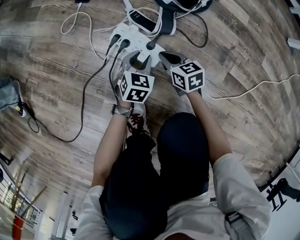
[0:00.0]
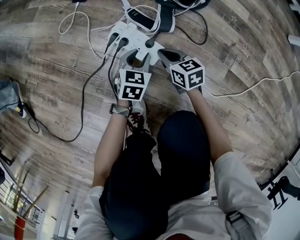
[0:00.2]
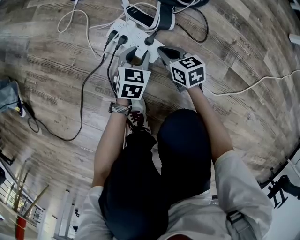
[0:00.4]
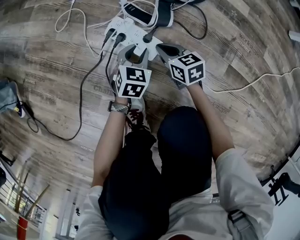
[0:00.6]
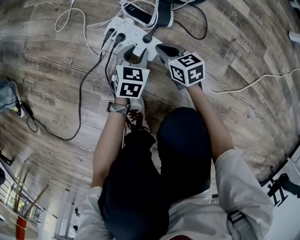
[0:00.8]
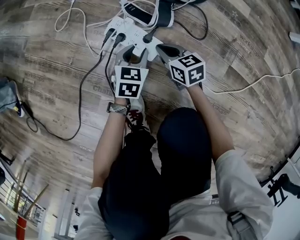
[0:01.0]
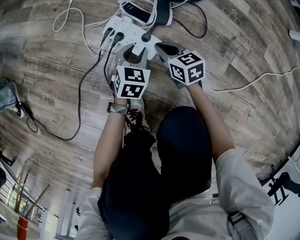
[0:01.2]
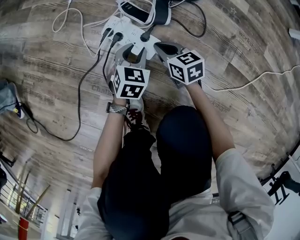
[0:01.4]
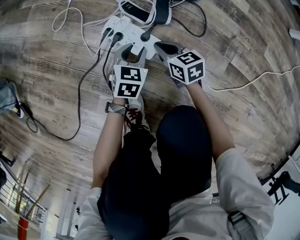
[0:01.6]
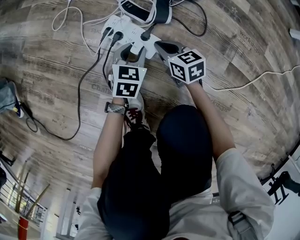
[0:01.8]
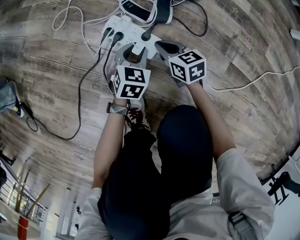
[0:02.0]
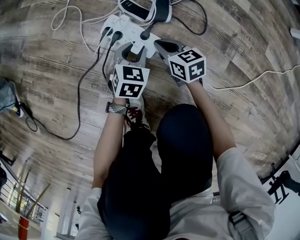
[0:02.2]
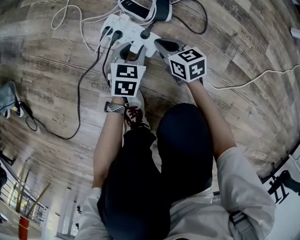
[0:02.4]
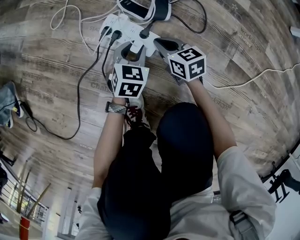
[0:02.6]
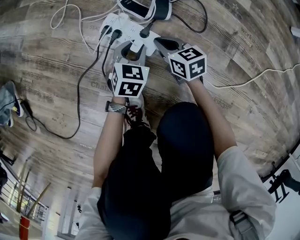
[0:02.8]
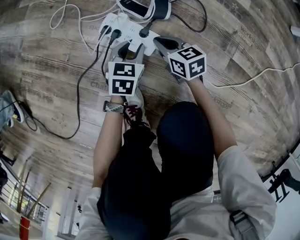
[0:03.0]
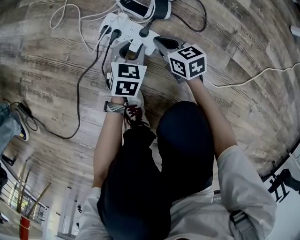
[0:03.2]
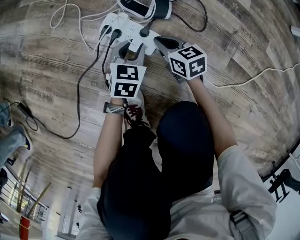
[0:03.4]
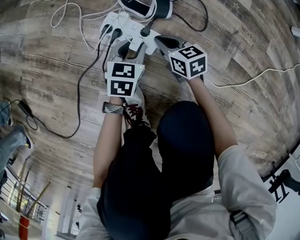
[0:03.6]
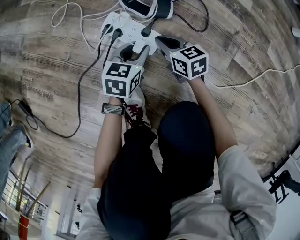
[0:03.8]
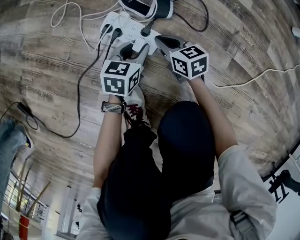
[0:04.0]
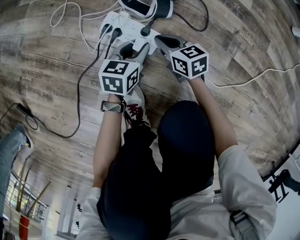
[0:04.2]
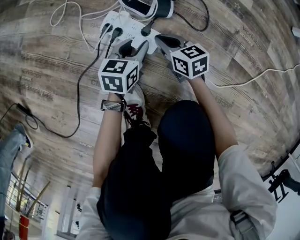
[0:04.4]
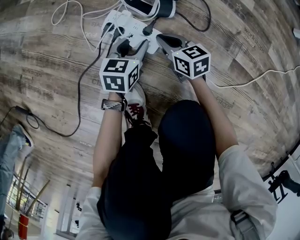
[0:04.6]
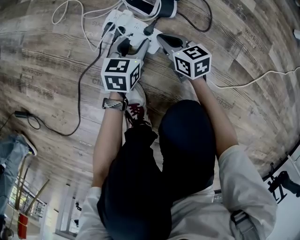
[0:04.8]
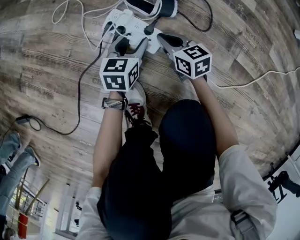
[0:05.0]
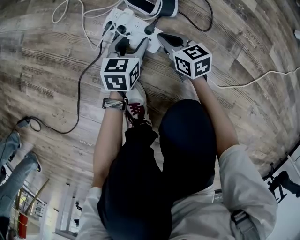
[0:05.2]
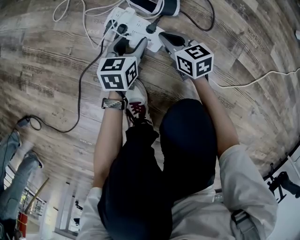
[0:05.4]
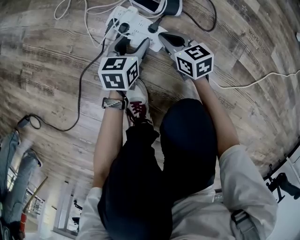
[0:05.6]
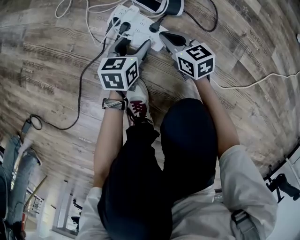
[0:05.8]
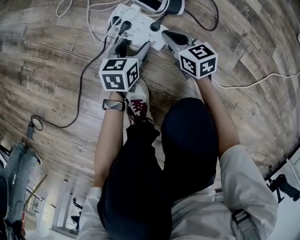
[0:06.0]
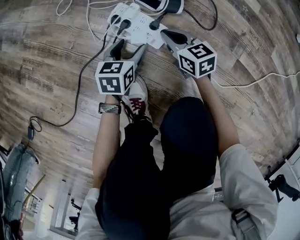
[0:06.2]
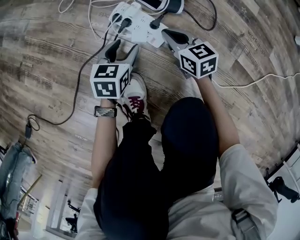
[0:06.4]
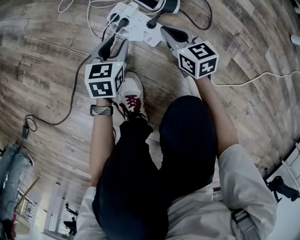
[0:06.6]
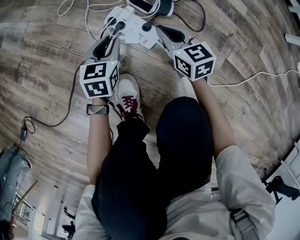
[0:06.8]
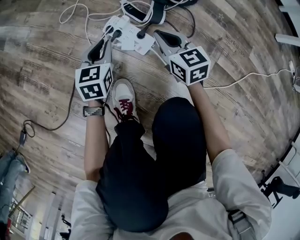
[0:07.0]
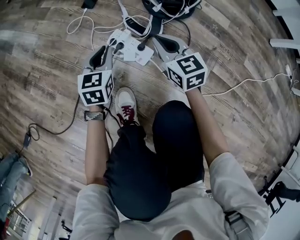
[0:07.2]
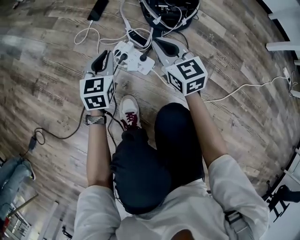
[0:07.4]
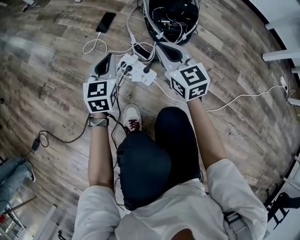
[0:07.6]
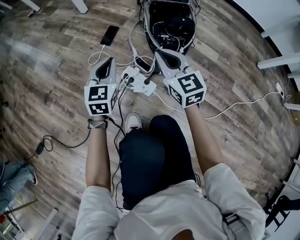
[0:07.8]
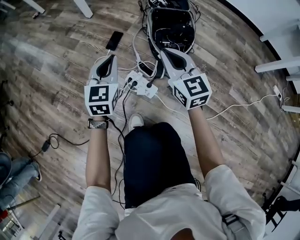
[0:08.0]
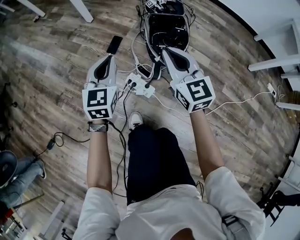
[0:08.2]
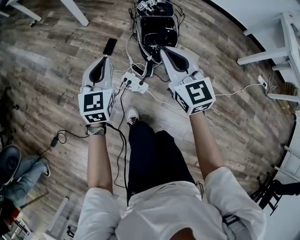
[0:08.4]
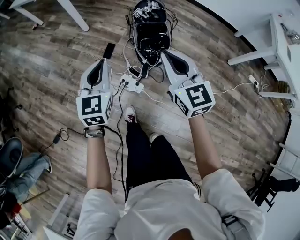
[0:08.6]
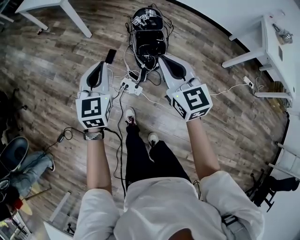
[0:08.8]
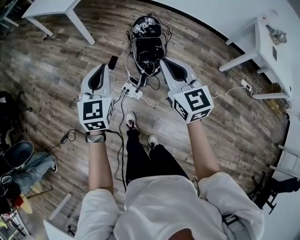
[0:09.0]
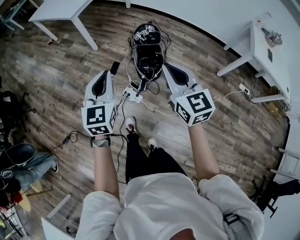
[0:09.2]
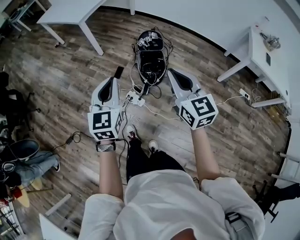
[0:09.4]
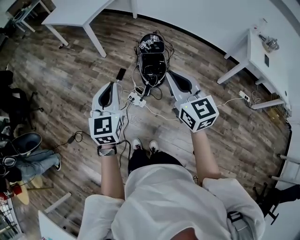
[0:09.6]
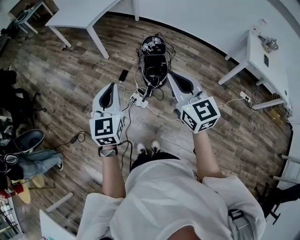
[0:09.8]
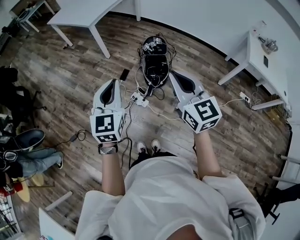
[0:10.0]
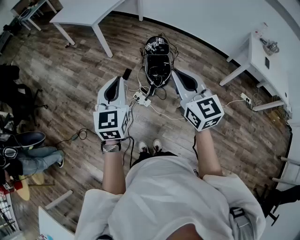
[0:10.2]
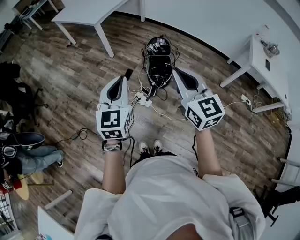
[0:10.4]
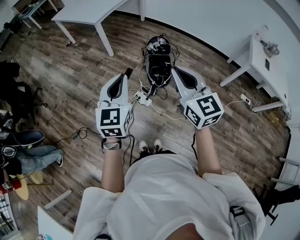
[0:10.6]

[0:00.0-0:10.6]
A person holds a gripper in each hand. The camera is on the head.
0:00.0 to 0:03.0: The grippers move only a little.
0:03.0 to 0:04.6: The grippers stay close to where they were, moving slightly.
0:04.6 to 0:06.0: The left gripper opens up.
0:06.0 to 0:07.6: Both grippers travel together upward, some 30 cm. The right gripper changes its angle by approximately 30 degrees. Meanwhile the left gripper swivels roughly 30 degrees, and closes its fingers.
0:07.6 to 0:09.0: The grippers both shift upward by some 70 cm.
0:09.0 to 0:10.6: The grippers both shift upward and backward by approximately 25 cm.

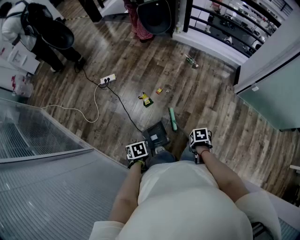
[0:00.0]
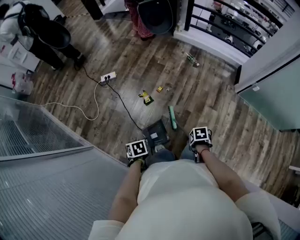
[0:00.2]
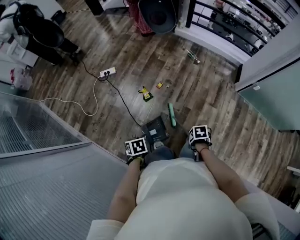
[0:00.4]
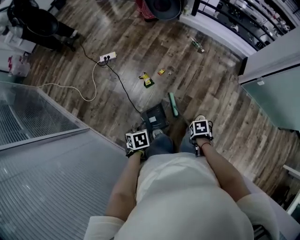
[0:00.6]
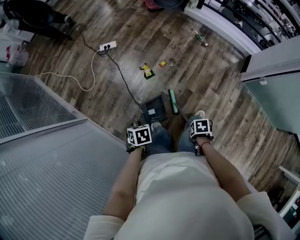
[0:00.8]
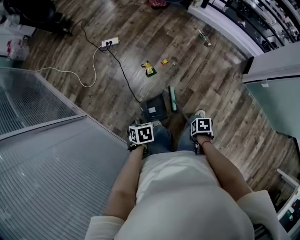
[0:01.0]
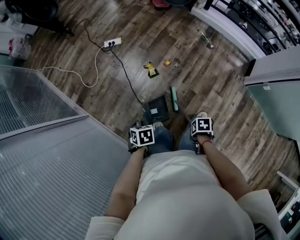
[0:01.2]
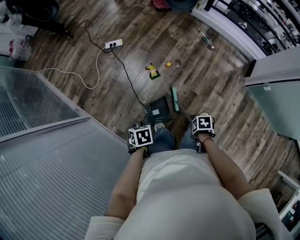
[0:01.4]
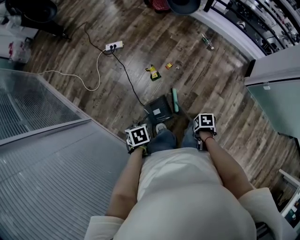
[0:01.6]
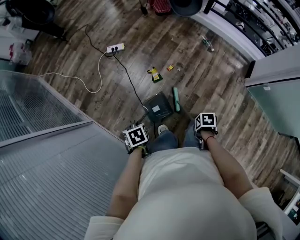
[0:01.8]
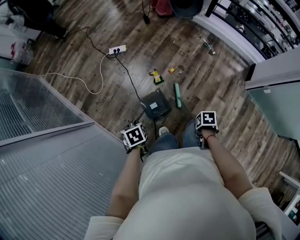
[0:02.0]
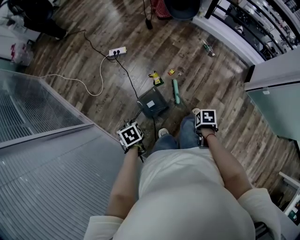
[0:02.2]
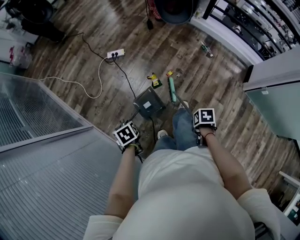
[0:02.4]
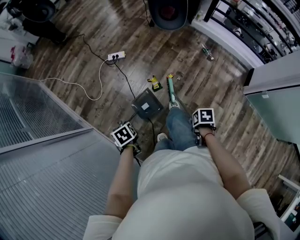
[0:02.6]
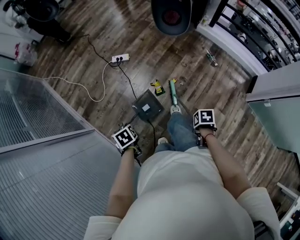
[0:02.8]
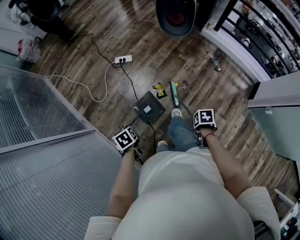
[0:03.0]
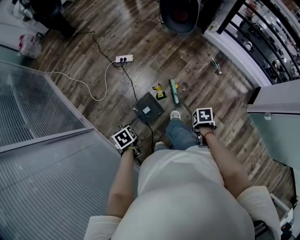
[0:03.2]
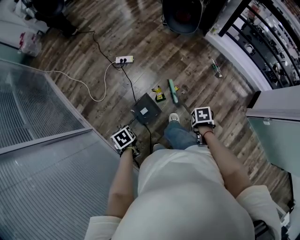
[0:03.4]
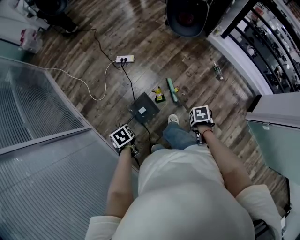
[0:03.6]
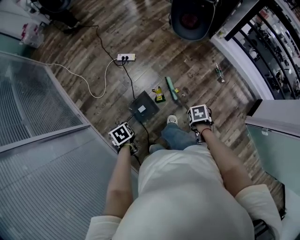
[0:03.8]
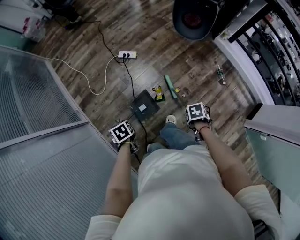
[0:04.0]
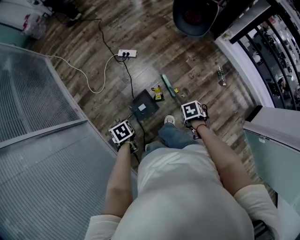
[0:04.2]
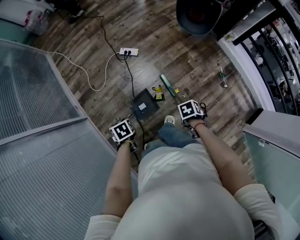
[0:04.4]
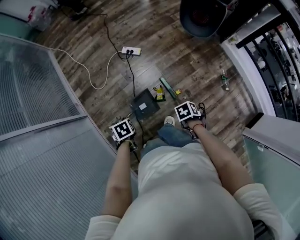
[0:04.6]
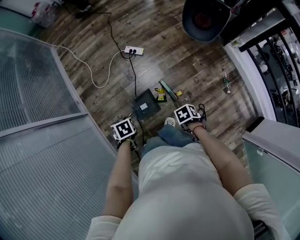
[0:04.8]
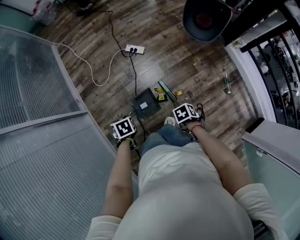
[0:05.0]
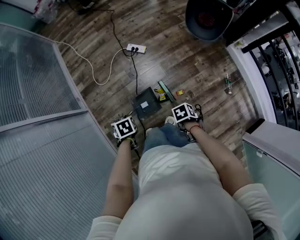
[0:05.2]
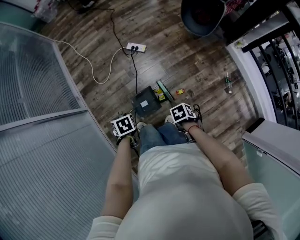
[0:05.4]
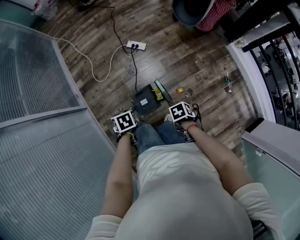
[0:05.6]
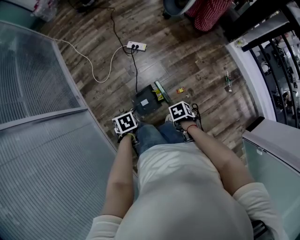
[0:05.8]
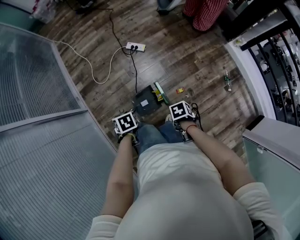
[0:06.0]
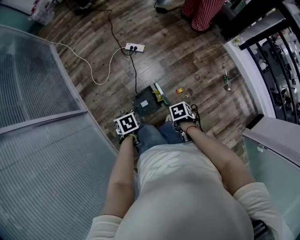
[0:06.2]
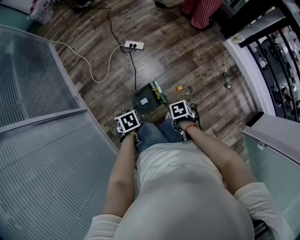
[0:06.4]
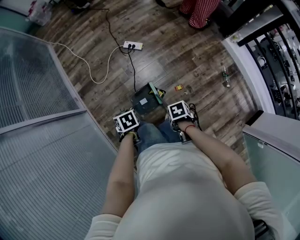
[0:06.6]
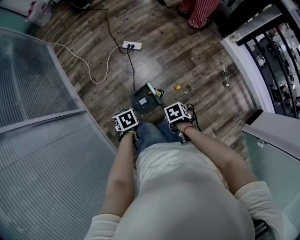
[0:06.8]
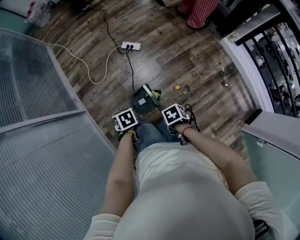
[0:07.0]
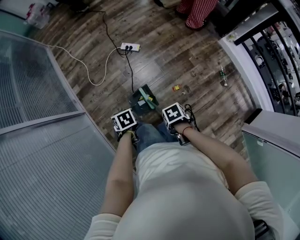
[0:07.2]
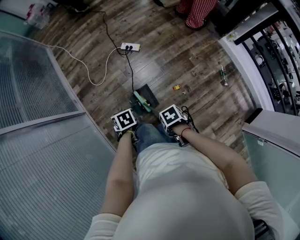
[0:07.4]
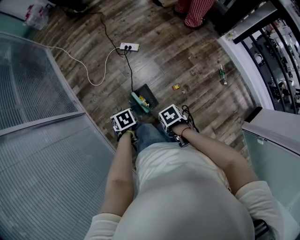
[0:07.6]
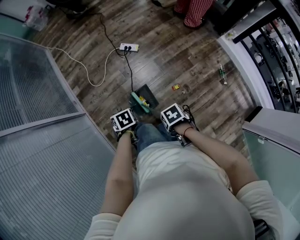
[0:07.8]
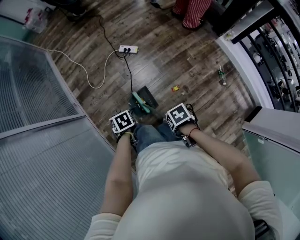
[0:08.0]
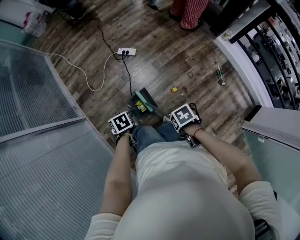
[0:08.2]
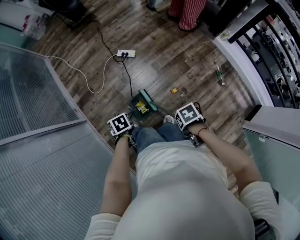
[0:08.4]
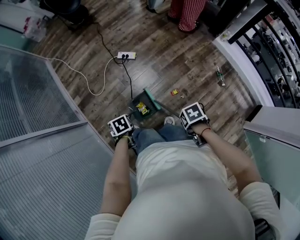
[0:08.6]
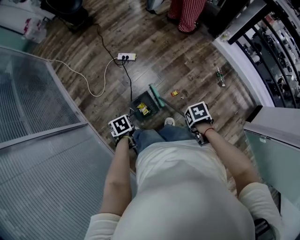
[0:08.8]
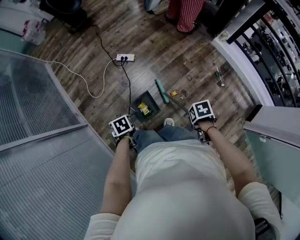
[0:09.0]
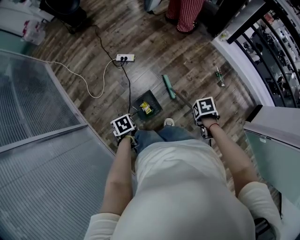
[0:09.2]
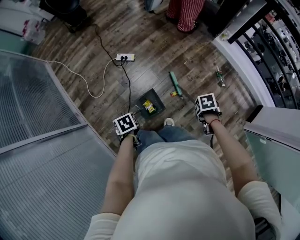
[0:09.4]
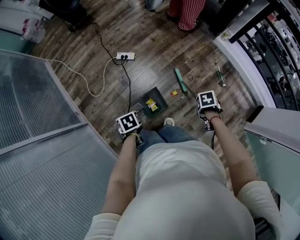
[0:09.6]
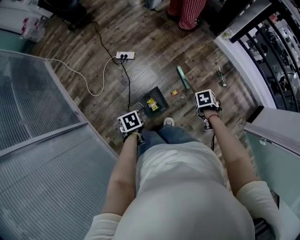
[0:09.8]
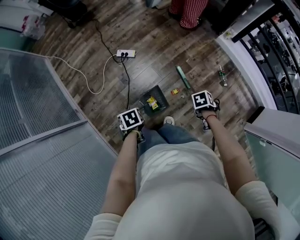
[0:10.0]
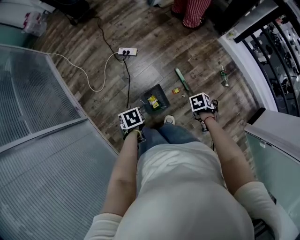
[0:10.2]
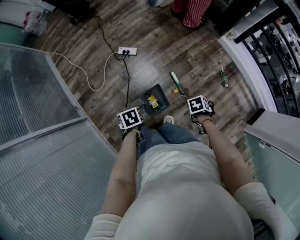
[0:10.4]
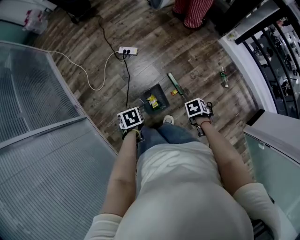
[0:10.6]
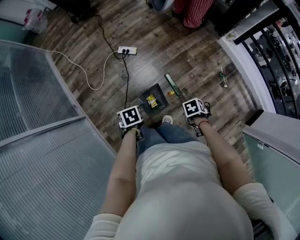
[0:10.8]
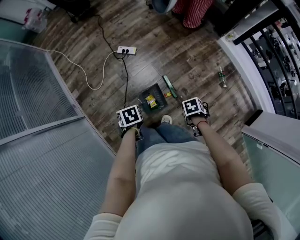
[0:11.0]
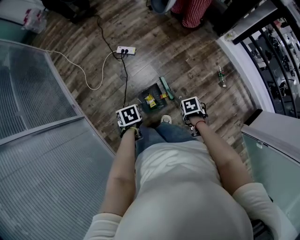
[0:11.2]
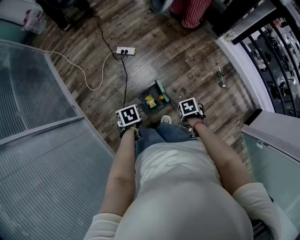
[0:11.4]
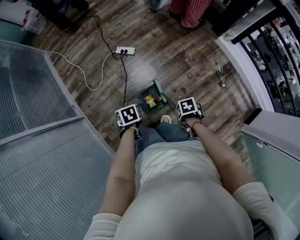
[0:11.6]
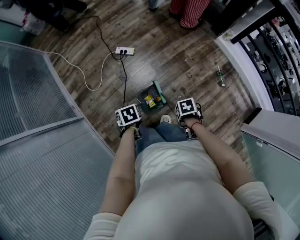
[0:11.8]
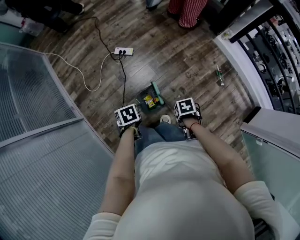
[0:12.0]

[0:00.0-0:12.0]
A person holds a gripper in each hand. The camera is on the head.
0:01.6 to 0:03.0: The left gripper shifts by roughly 15 cm, and changes its angle by approximately 20 degrees.
0:03.0 to 0:04.4: The left gripper changes place by approximately 10 cm.
0:09.0 to 0:10.4: The left gripper changes place by some 10 cm.

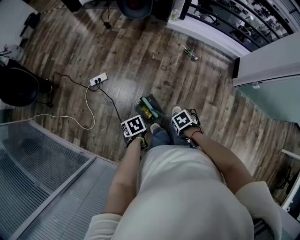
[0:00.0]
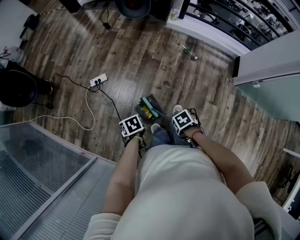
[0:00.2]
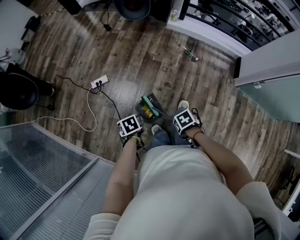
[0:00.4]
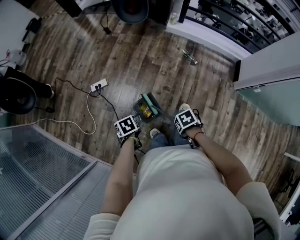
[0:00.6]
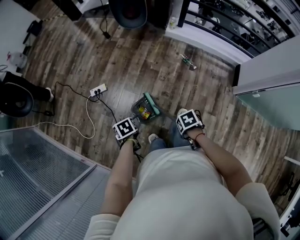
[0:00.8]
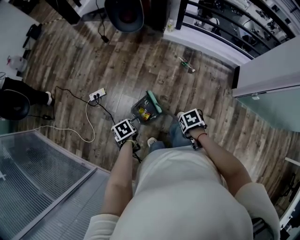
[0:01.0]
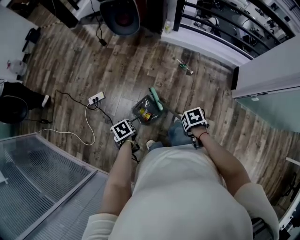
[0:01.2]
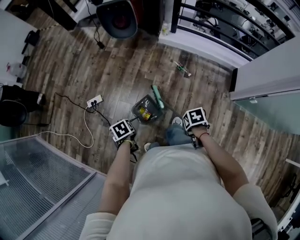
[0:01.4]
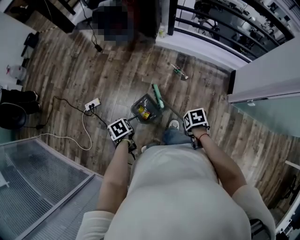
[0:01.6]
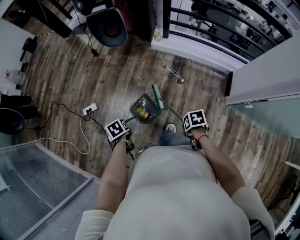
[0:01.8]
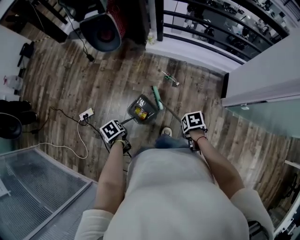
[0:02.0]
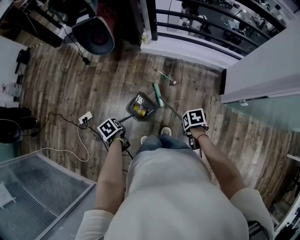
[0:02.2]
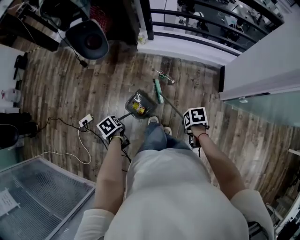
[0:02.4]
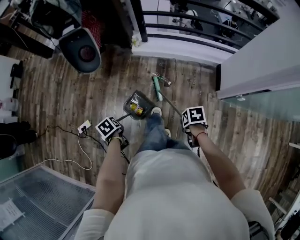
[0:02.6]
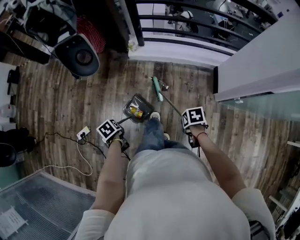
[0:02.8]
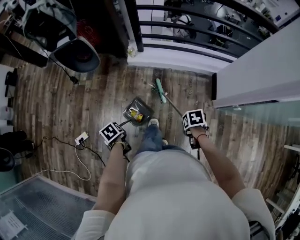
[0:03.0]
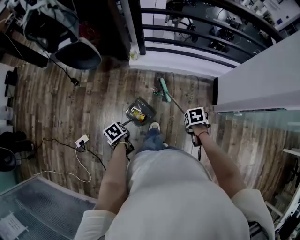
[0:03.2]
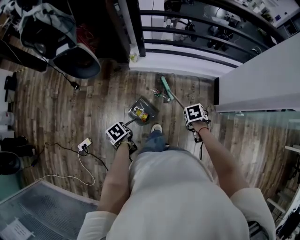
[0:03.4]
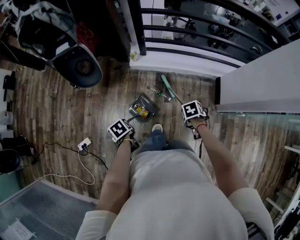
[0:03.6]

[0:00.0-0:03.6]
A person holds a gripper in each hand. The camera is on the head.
0:00.0 to 0:01.8: The left gripper moves about 30 cm.
0:01.8 to 0:03.6: The left gripper changes place by roughly 30 cm.
